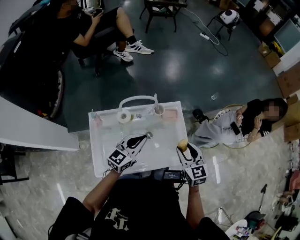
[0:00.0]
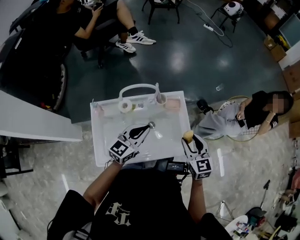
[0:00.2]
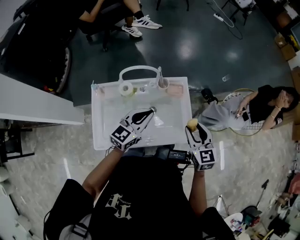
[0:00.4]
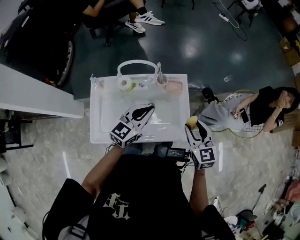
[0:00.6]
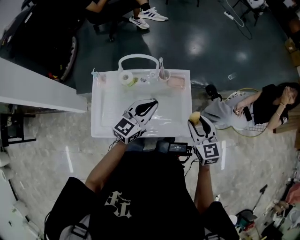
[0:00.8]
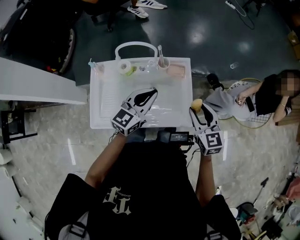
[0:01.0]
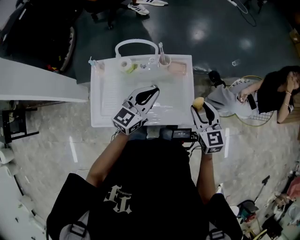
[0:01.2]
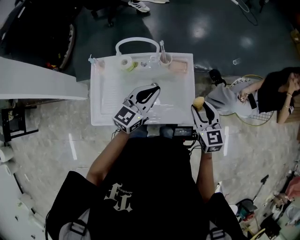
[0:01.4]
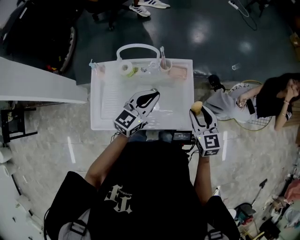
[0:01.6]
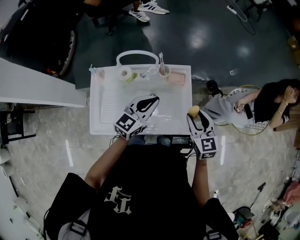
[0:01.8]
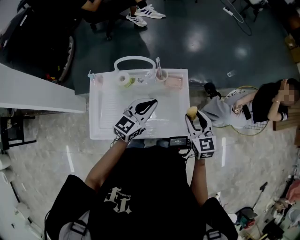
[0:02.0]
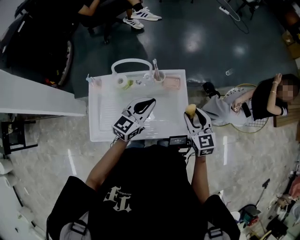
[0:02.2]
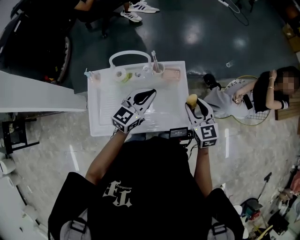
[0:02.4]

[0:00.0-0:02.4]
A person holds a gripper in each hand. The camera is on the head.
0:00.0 to 0:01.2: The two grippers go roughly 10 cm to the right.
0:01.2 to 0:02.4: The grippers make only small movements.

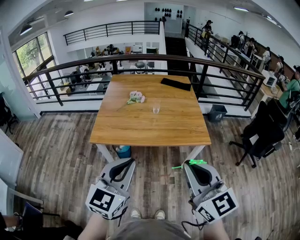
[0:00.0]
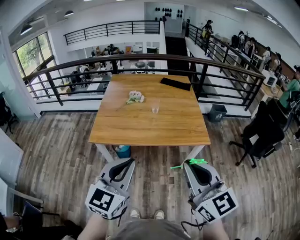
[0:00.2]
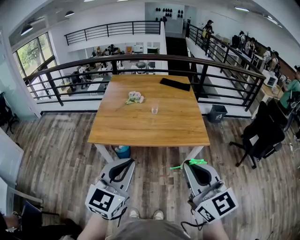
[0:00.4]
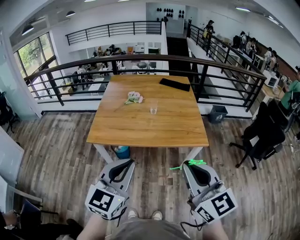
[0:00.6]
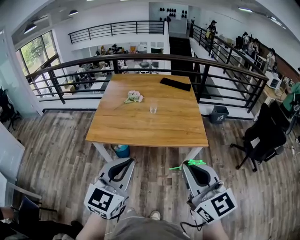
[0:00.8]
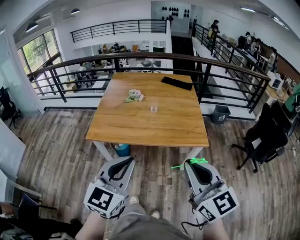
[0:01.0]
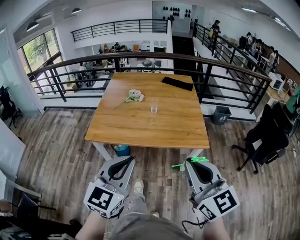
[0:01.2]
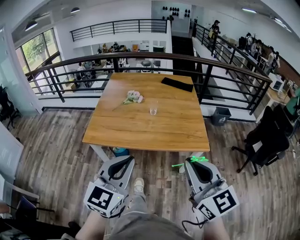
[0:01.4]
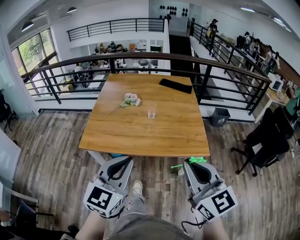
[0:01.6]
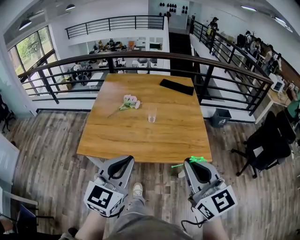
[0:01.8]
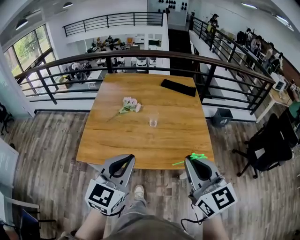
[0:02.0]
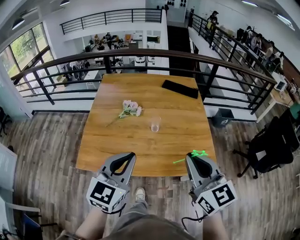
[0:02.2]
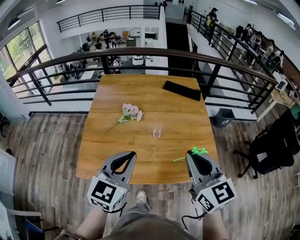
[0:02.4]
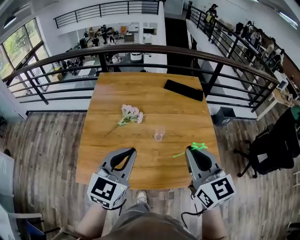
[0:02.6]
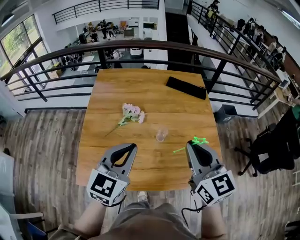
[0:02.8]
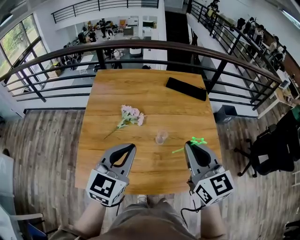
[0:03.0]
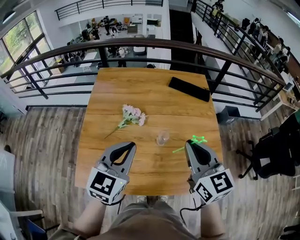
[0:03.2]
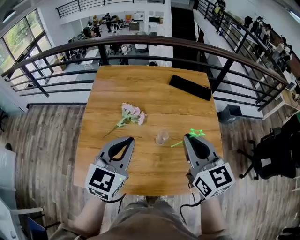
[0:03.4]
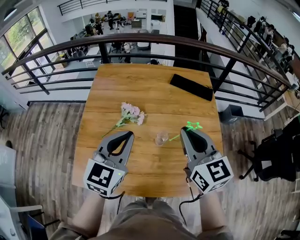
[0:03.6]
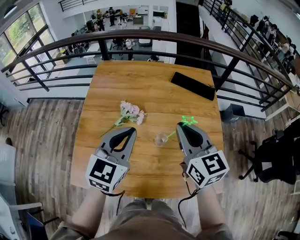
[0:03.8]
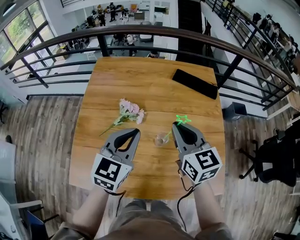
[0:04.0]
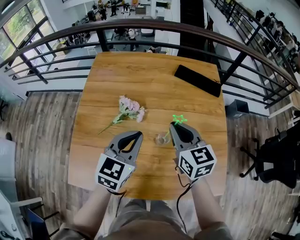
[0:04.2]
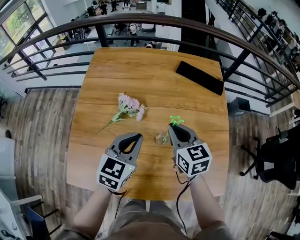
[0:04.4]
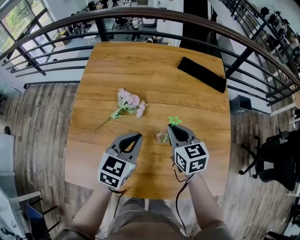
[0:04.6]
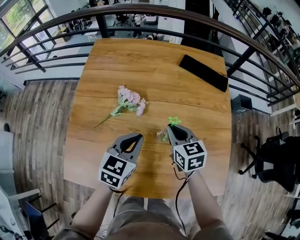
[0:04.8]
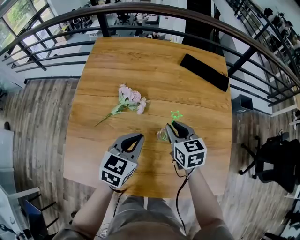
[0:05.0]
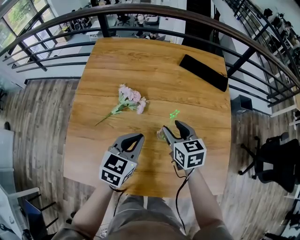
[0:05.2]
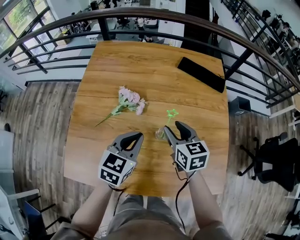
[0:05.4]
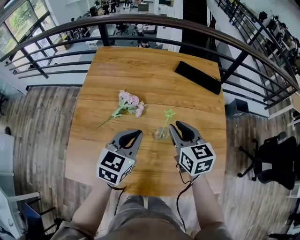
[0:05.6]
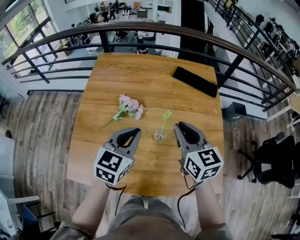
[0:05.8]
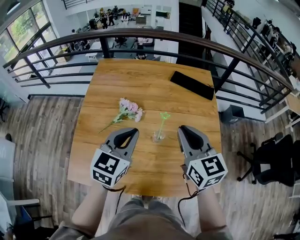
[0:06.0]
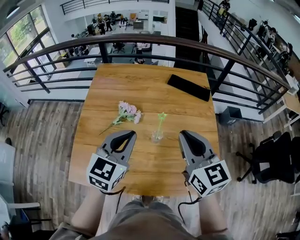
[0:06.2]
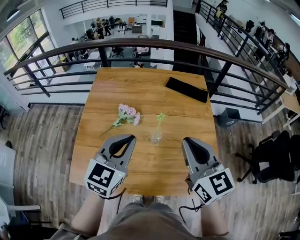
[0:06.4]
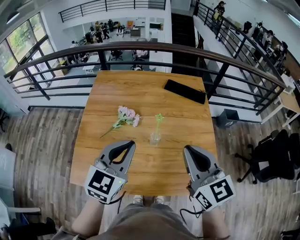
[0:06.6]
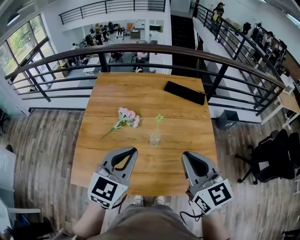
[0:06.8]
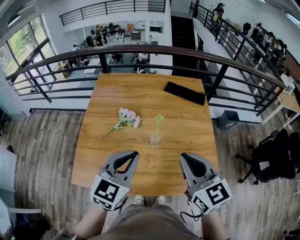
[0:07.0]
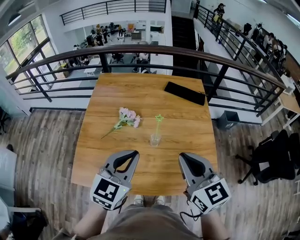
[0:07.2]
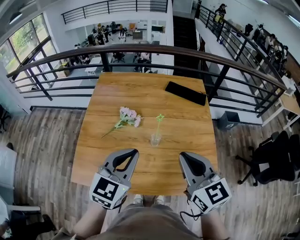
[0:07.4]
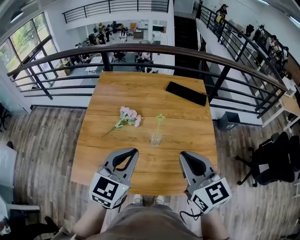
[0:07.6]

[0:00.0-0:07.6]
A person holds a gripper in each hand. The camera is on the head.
0:00.0 to 0:01.6: Both grippers move forward and to the right, some 10 cm.
0:01.6 to 0:03.0: Both grippers move forward, about 35 cm.
0:03.0 to 0:04.6: The grippers both shift downward and forward by some 25 cm. The right gripper rotates some 20 degrees.
0:04.6 to 0:06.0: The left gripper moves upward, roughly 10 cm; the right gripper moves upward and backward, roughly 20 cm, and opens, then closes once more.
0:06.0 to 0:07.6: The left gripper moves backward and upward, approximately 10 cm; the right gripper goes approximately 15 cm backward.

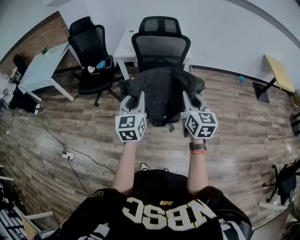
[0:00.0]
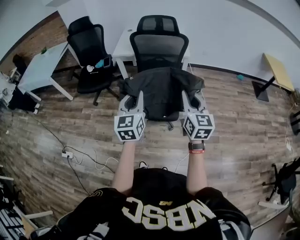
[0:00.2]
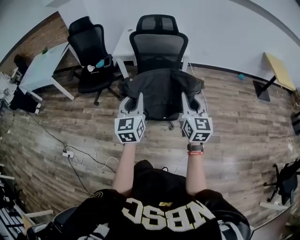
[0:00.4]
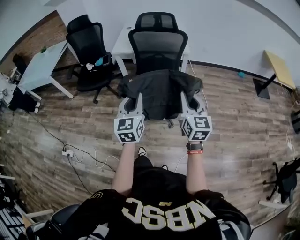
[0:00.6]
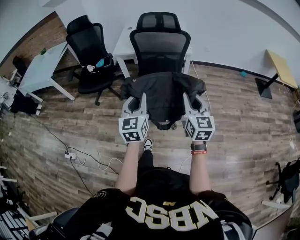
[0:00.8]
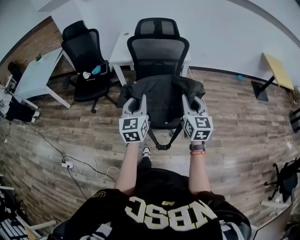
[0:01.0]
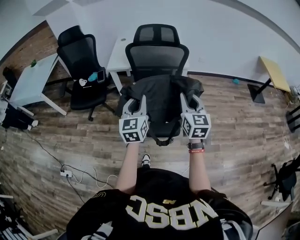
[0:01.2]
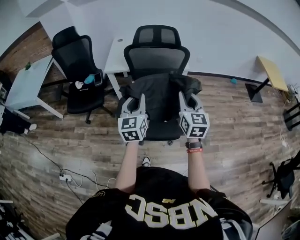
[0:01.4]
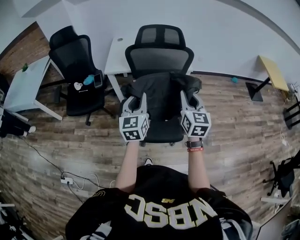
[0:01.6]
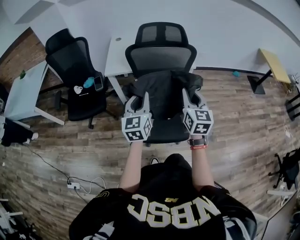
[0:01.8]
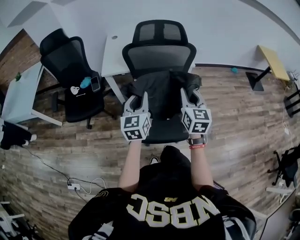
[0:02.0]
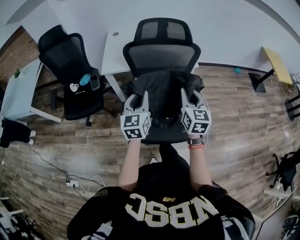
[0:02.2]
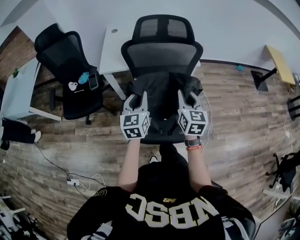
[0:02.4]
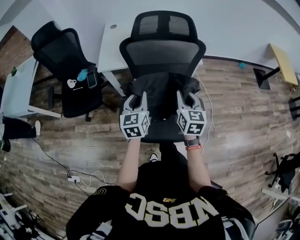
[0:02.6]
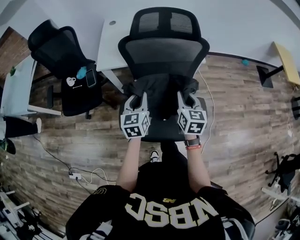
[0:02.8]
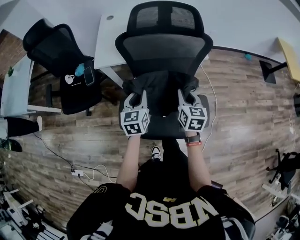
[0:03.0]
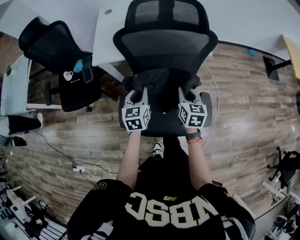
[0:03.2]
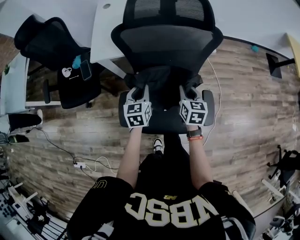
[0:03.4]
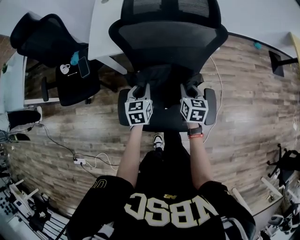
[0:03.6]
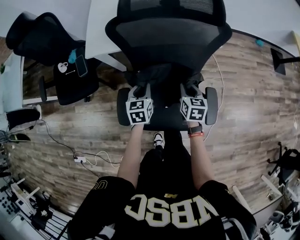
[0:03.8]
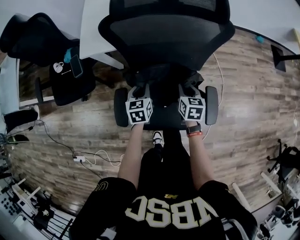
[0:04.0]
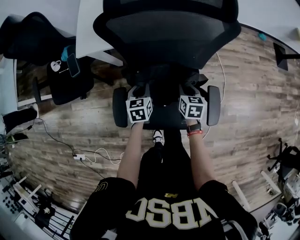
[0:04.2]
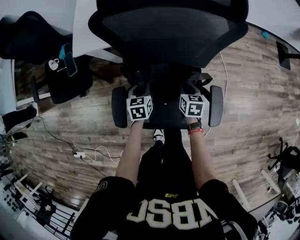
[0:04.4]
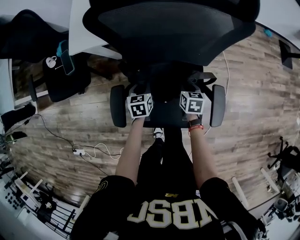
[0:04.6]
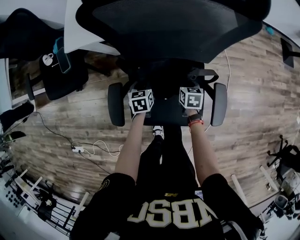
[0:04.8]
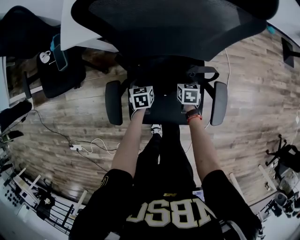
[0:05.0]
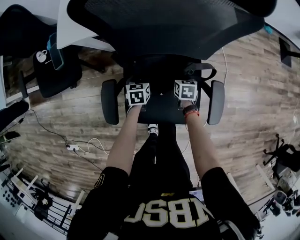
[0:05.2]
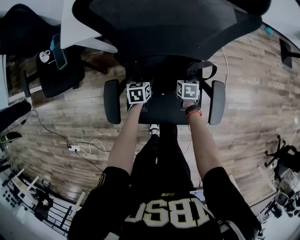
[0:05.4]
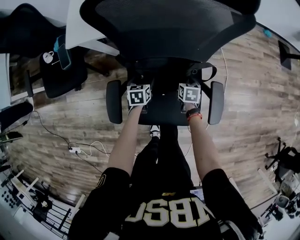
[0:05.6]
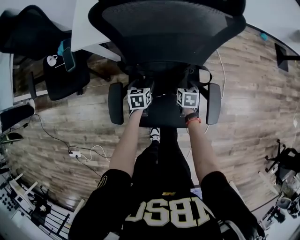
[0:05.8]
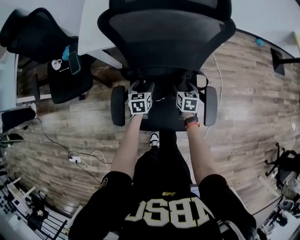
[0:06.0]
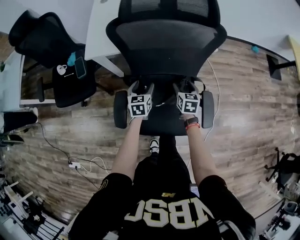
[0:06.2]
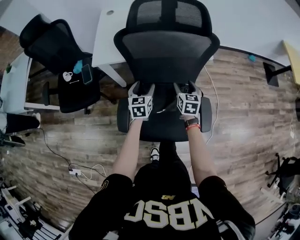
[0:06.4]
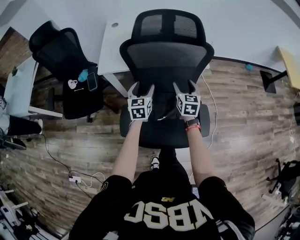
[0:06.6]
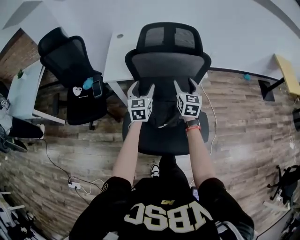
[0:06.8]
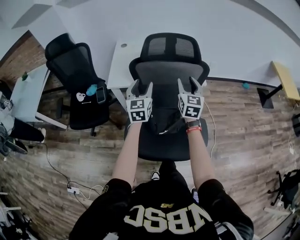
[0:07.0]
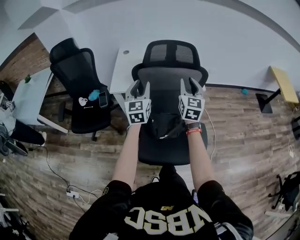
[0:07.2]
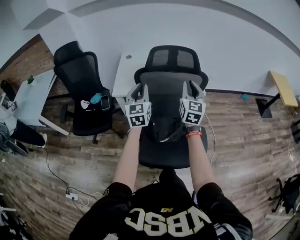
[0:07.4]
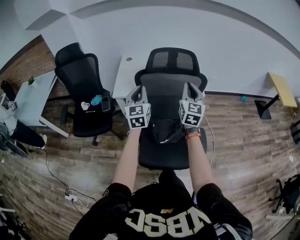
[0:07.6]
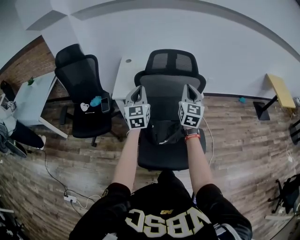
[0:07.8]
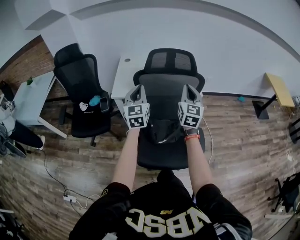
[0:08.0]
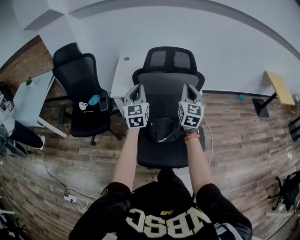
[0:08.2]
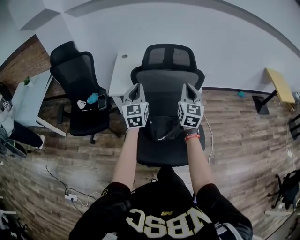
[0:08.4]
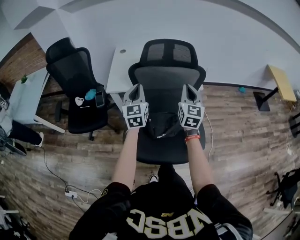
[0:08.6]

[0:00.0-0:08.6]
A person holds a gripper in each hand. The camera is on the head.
0:00.0 to 0:01.4: Both grippers move forward, roughly 20 cm.
0:01.4 to 0:02.8: The two grippers go about 25 cm forward and downward.
0:02.8 to 0:04.4: Both grippers move downward, approximately 30 cm. The right gripper rotates about 30 degrees. Meanwhile the left gripper changes its angle by roughly 30 degrees.
0:04.4 to 0:05.8: Both grippers move downward, about 5 cm. The right gripper opens; the left gripper opens up.
0:05.8 to 0:07.2: The two grippers go some 50 cm upward. The right gripper points its fingers approximately 50 degrees further upward, and closes its fingers, while the left gripper tips its fingers upward by roughly 50 degrees, and closes.
0:07.2 to 0:08.6: The right gripper closes its fingers, while the left gripper closes its fingers.

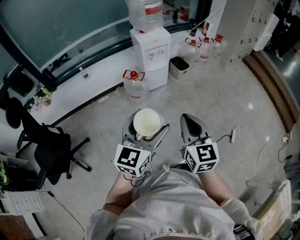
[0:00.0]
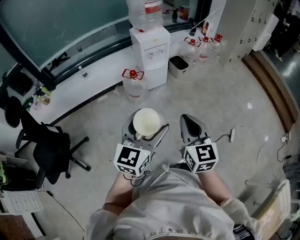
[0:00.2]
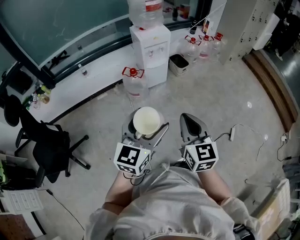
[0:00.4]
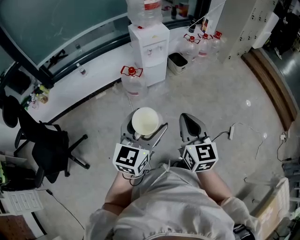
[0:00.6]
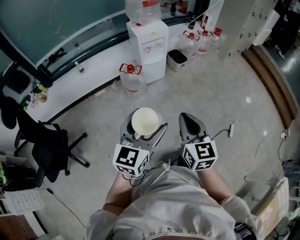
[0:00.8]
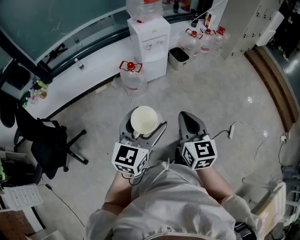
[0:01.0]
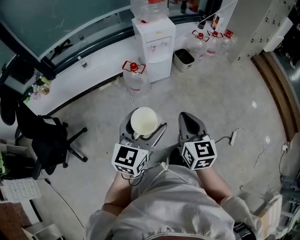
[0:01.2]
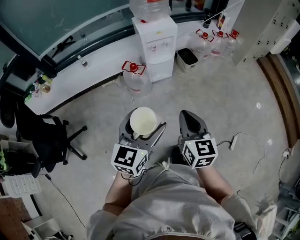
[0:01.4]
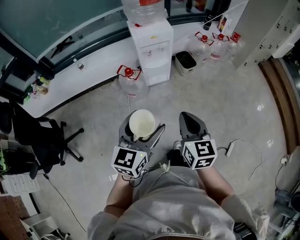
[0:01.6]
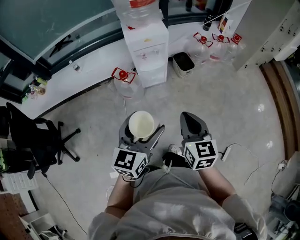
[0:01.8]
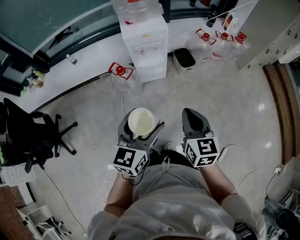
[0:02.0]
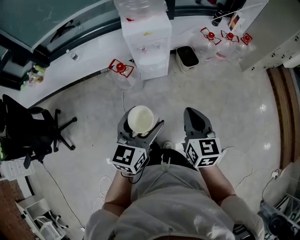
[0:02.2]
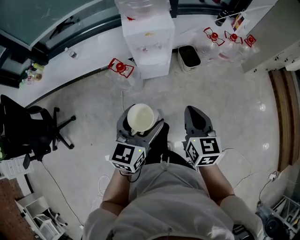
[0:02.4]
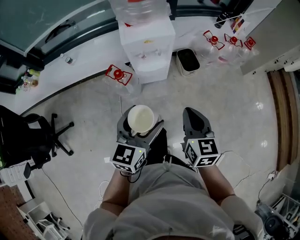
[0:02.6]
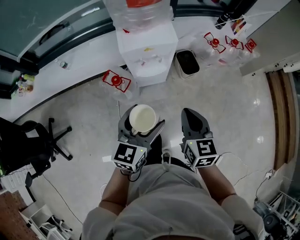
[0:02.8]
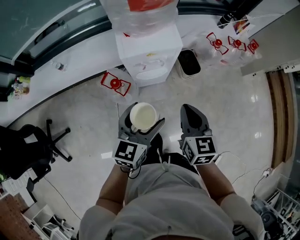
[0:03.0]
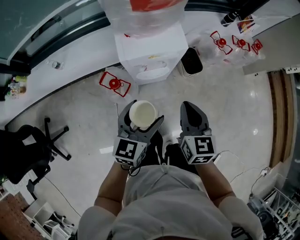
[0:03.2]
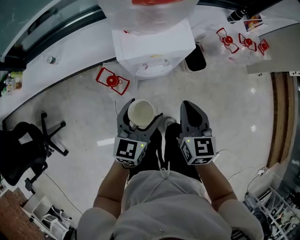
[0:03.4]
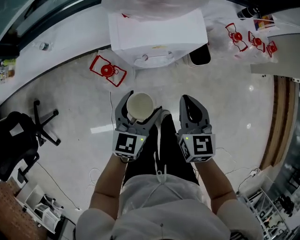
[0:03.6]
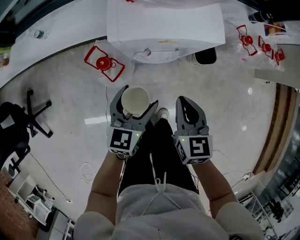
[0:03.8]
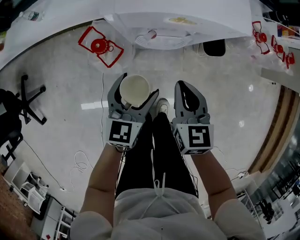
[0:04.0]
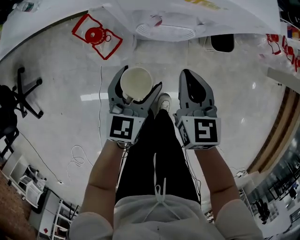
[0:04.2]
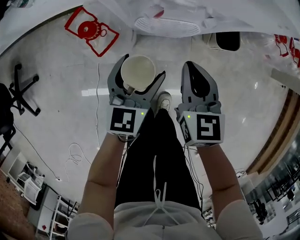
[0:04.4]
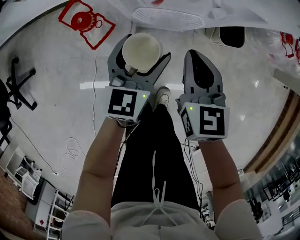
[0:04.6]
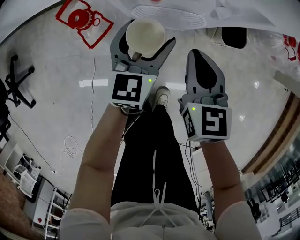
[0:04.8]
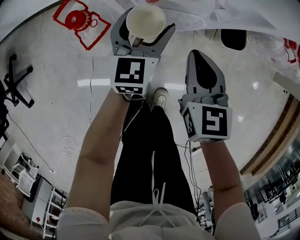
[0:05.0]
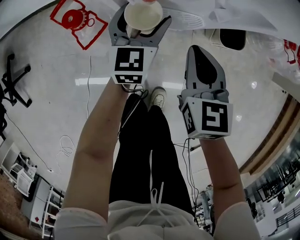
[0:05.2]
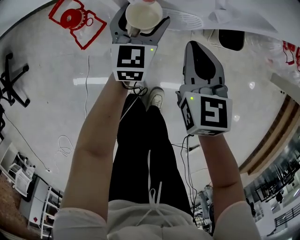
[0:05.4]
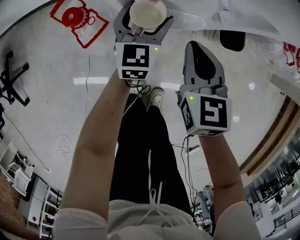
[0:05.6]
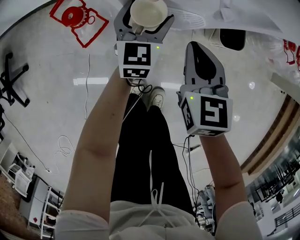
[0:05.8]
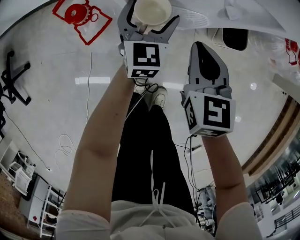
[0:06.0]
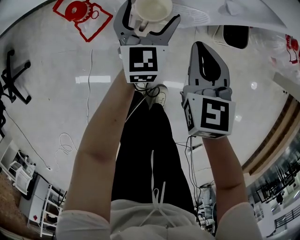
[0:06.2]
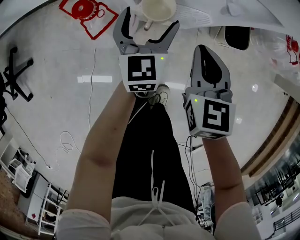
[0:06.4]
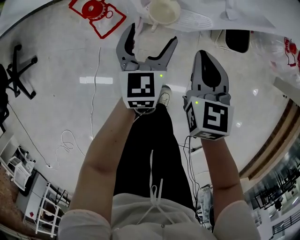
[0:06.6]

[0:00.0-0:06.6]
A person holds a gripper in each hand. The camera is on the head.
0:00.0 to 0:01.6: The two grippers go some 20 cm forward and to the right.
0:01.6 to 0:03.2: Both grippers move forward, roughly 40 cm.
0:03.2 to 0:05.0: The two grippers go roughly 35 cm downward and forward. The left gripper changes its angle by roughly 30 degrees, while the right gripper swivels some 20 degrees.
0:05.0 to 0:06.6: The left gripper is displaced backward by roughly 5 cm.
